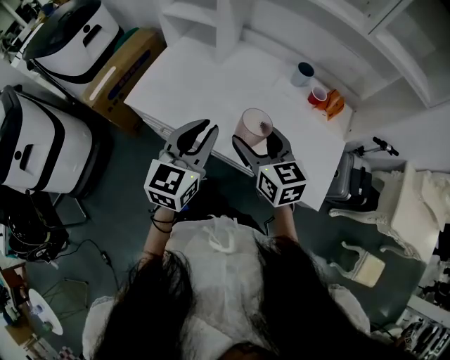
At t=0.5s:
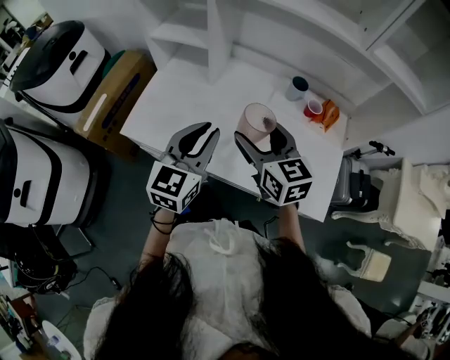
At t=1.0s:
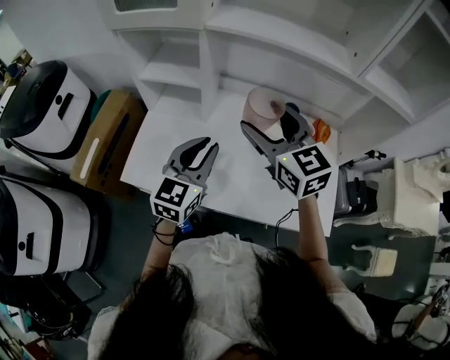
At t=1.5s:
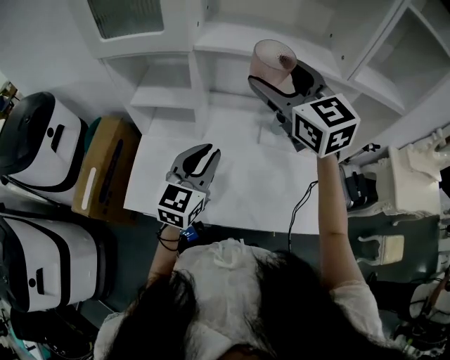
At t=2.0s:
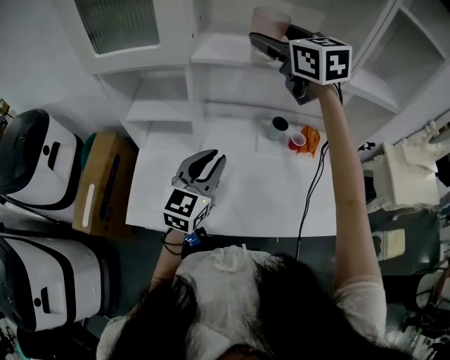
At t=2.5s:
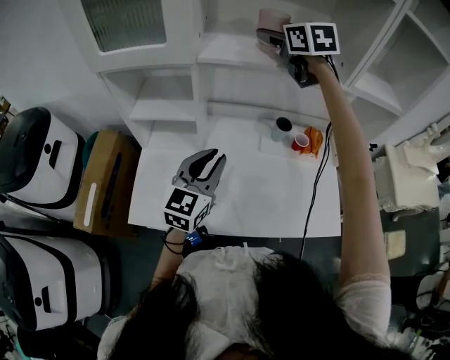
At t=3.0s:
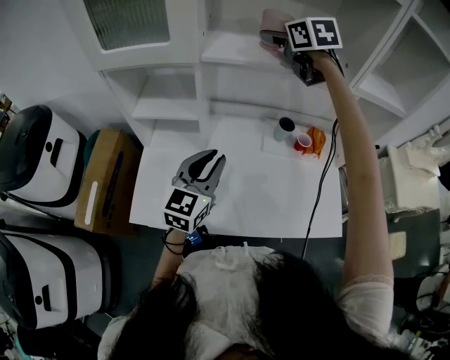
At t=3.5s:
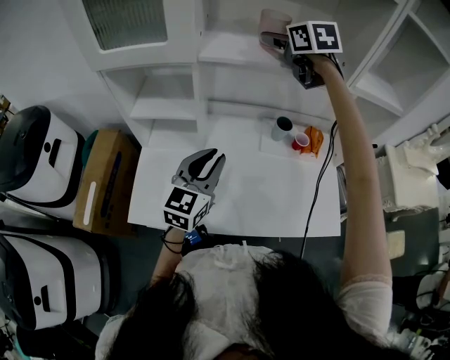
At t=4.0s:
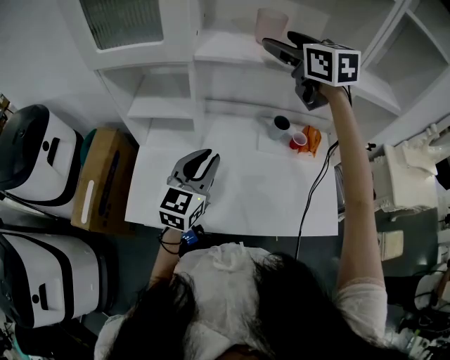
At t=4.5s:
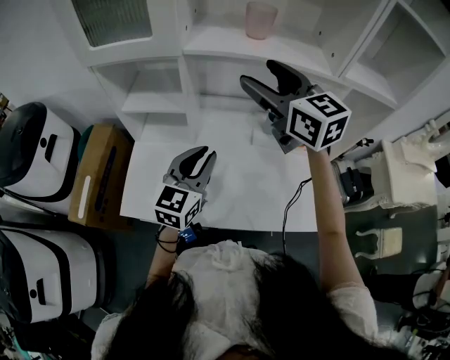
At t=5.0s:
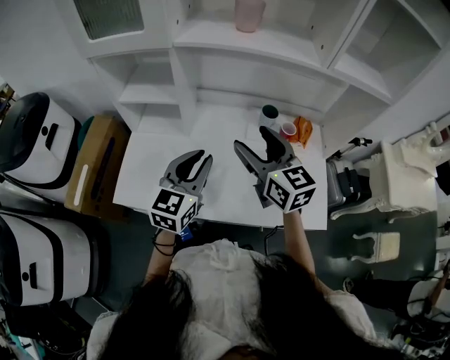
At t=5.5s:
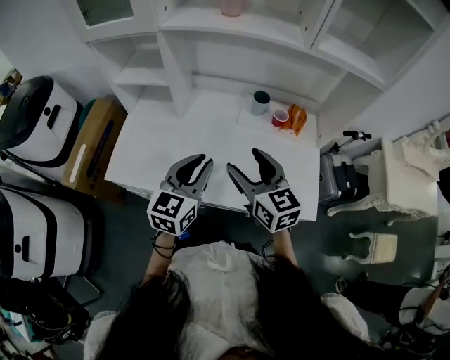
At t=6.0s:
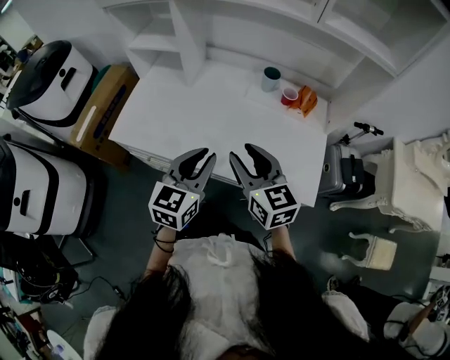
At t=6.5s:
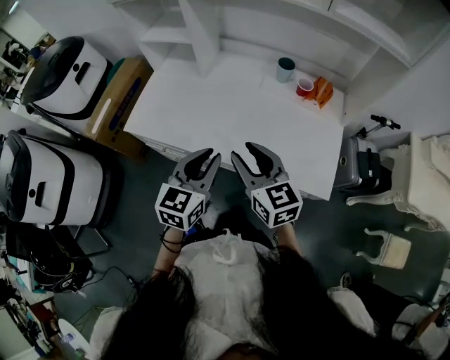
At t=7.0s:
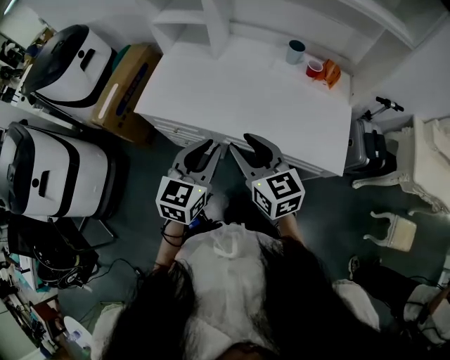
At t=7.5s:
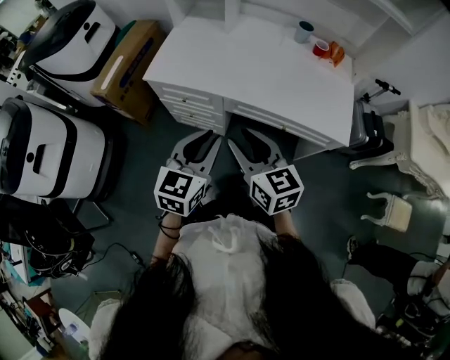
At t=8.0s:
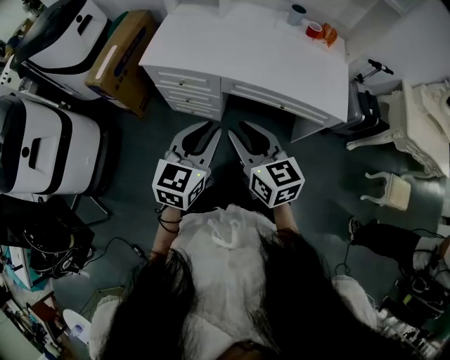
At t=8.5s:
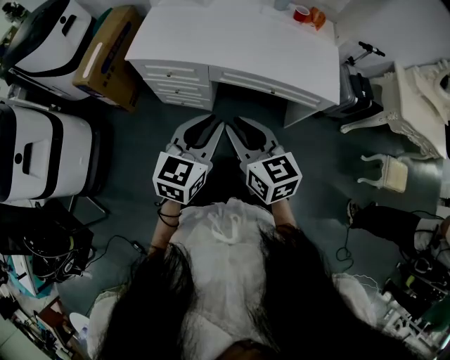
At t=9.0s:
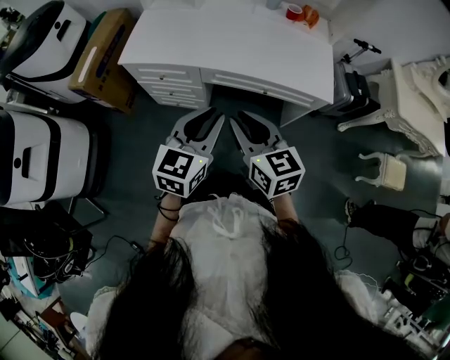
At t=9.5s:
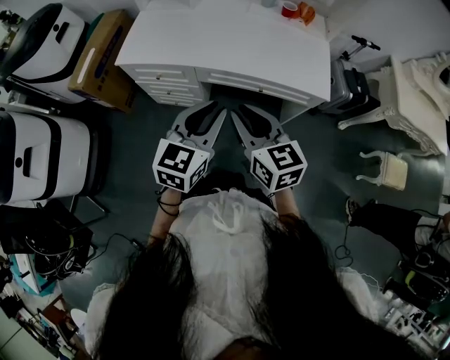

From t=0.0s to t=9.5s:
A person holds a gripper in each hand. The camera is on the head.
From t=0.0s to t=2.0s: The right gripper moves forward and upward, approximately 50 cm, and rotates about 30 degrees, while the left gripper heads forward, covering roughly 20 cm, and turns by some 30 degrees.
From t=2.0s to t=4.0s: The right gripper moves roughly 10 cm forward and comes back.
From t=4.0s to t=5.5s: The left gripper is displaced backward and to the right by about 15 cm, while the right gripper travels backward and downward by roughly 40 cm.
From t=5.5s to t=7.5s: The two grippers go some 30 cm backward and to the left. The right gripper closes up.
From t=7.5s to t=9.5s: Both grippers move to the right, approximately 10 cm.

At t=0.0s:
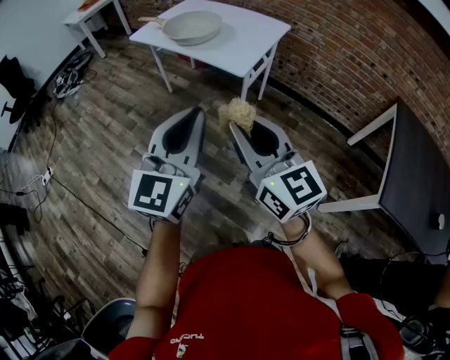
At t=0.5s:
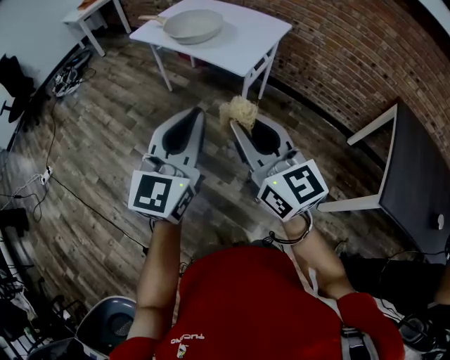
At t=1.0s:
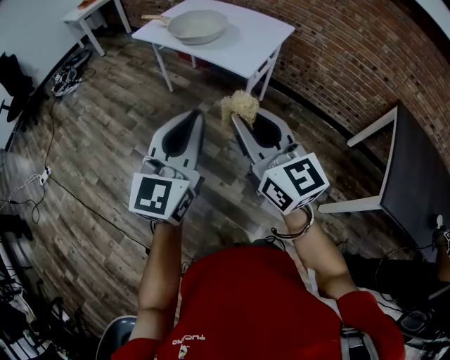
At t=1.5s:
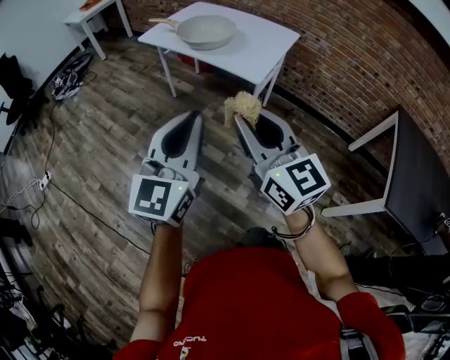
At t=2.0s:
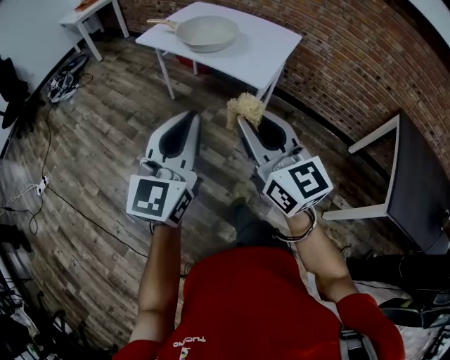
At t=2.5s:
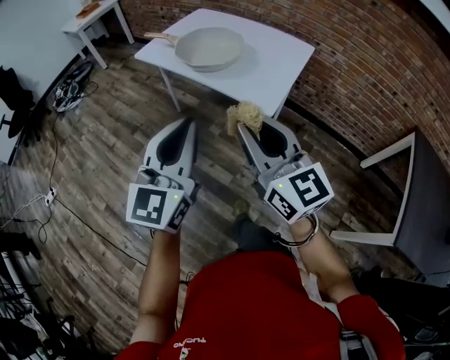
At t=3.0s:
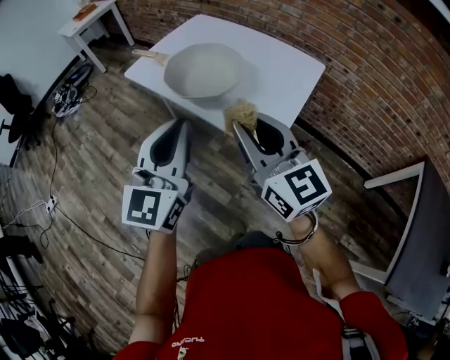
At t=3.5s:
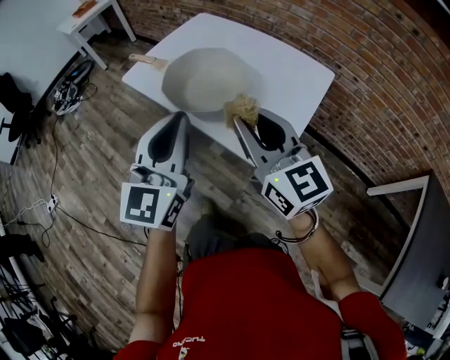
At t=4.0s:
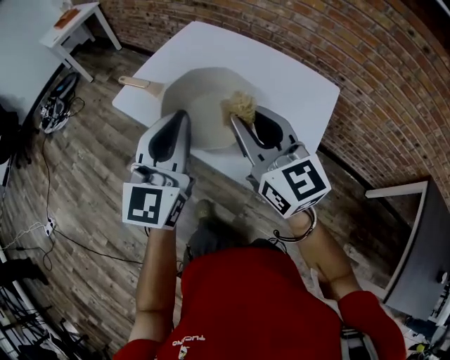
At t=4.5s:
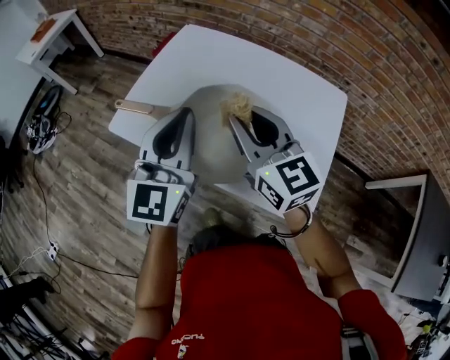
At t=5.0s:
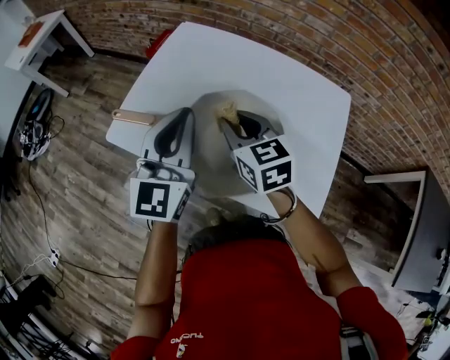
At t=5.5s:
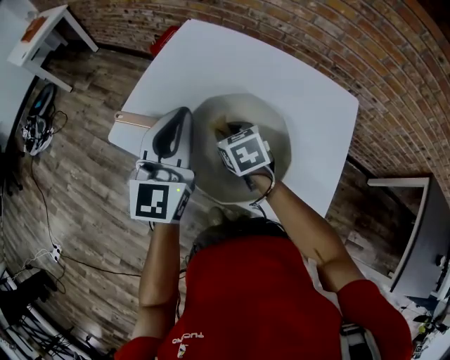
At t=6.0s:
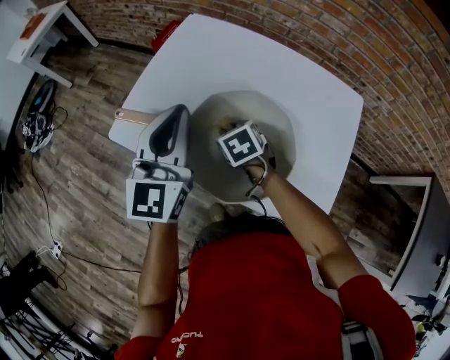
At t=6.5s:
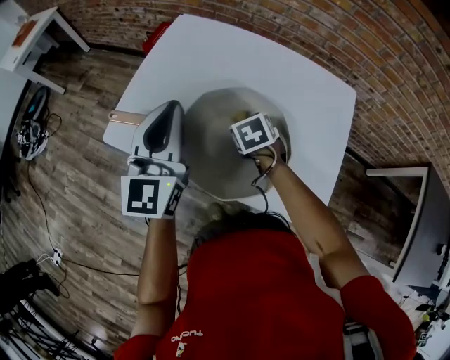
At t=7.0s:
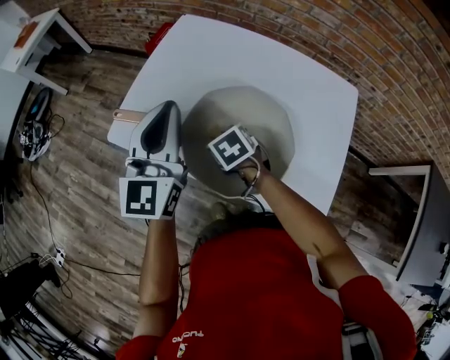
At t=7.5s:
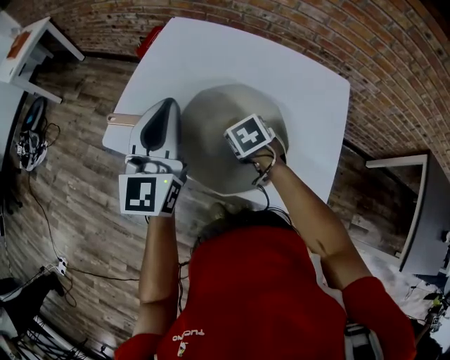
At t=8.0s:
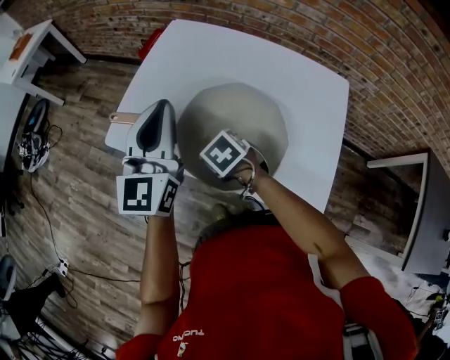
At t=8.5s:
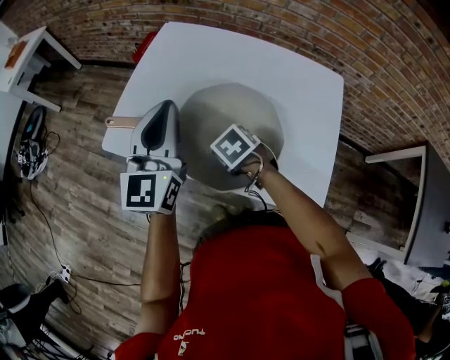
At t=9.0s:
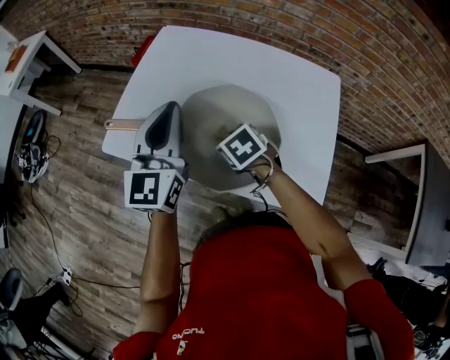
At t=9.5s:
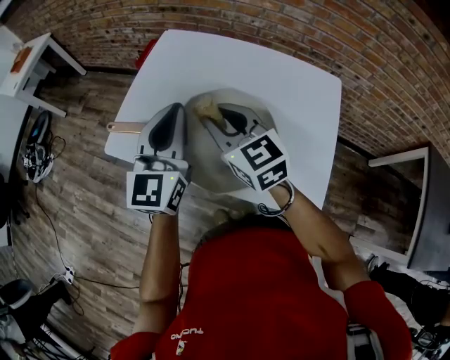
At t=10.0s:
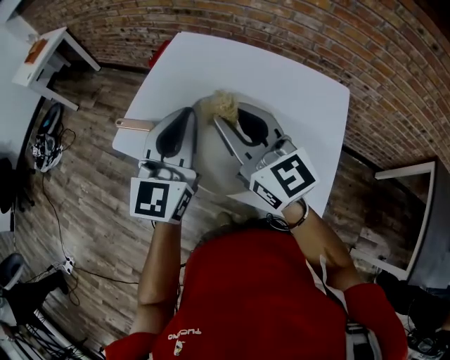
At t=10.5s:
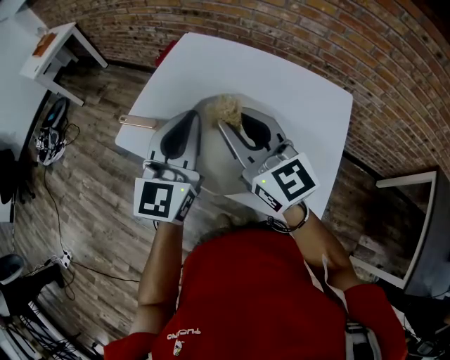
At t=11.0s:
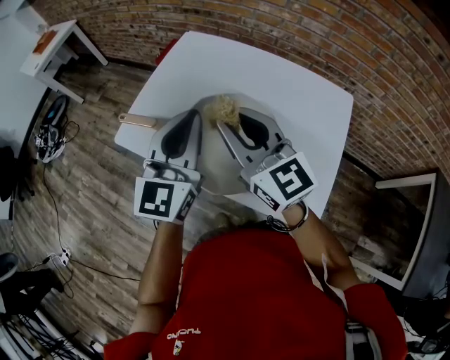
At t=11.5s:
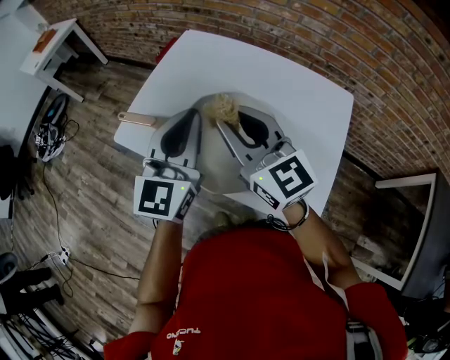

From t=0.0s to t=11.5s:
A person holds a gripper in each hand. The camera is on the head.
From t=0.0s to t=2.0s: Both grippers move to the left and forward, roughly 15 cm.
From t=2.0s to t=4.0s: The pair of grippers is taken forward, about 50 cm.
From t=4.0s to t=6.0s: The right gripper moves downward and forward, roughly 35 cm, and angles its fingers downward, by some 60 degrees. The left gripper travels forward by some 20 cm.
From t=6.0s to t=7.5s: The right gripper goes left and right, approximately 10 cm each way, reversing 2 times.
From t=7.5s to t=9.5s: The right gripper moves upward, approximately 20 cm, and angles its fingers upward, by roughly 50 degrees.
From t=9.5s to t=11.5s: The right gripper goes some 5 cm upward.

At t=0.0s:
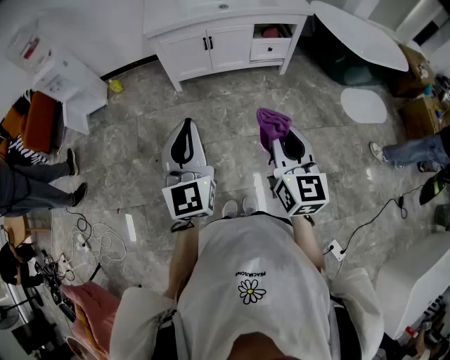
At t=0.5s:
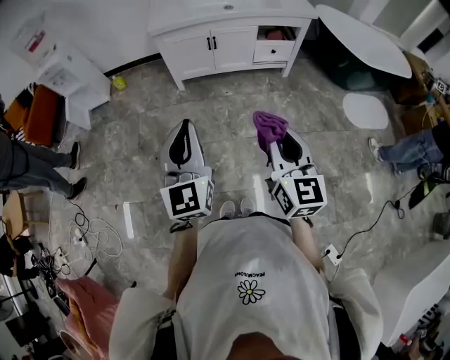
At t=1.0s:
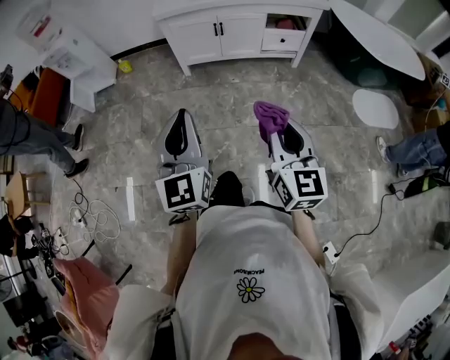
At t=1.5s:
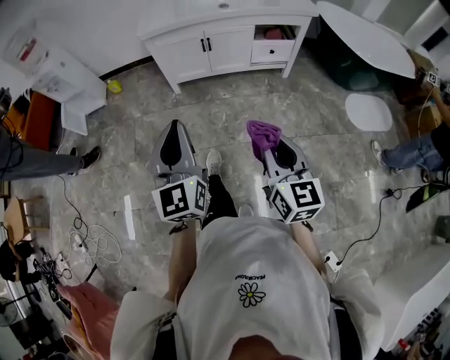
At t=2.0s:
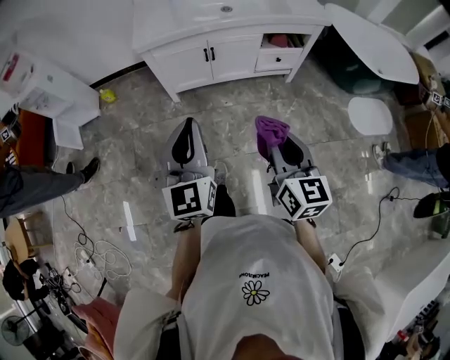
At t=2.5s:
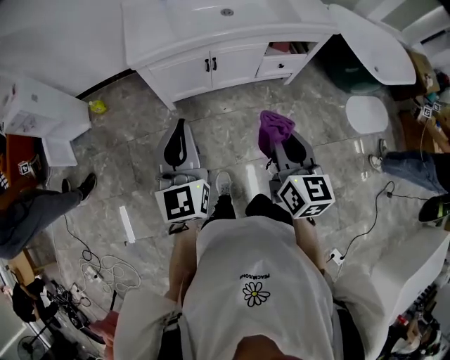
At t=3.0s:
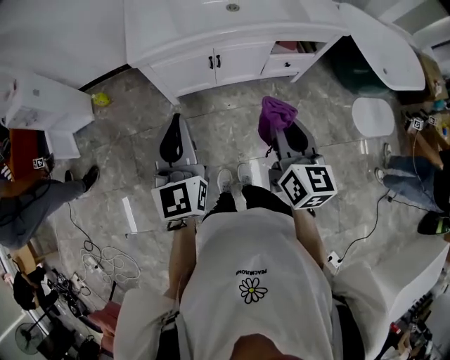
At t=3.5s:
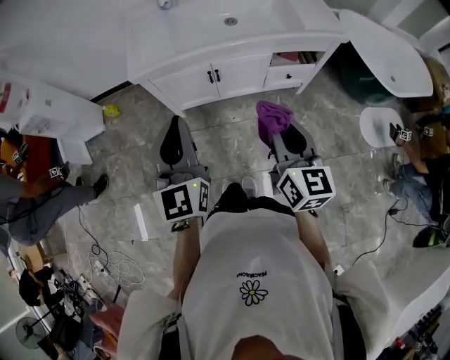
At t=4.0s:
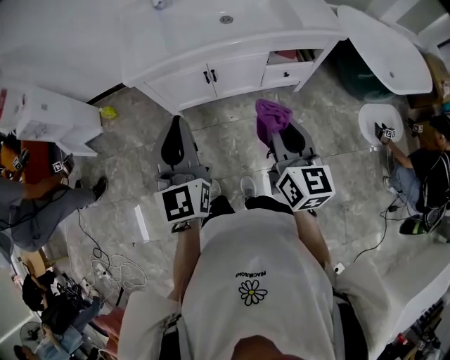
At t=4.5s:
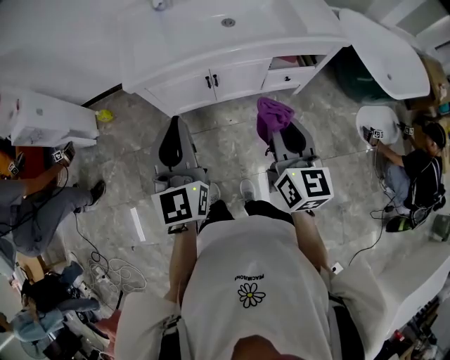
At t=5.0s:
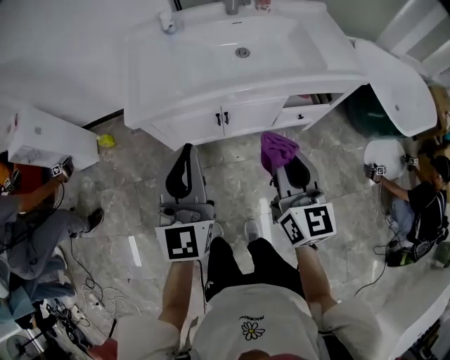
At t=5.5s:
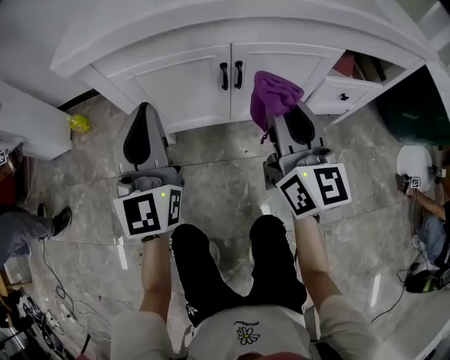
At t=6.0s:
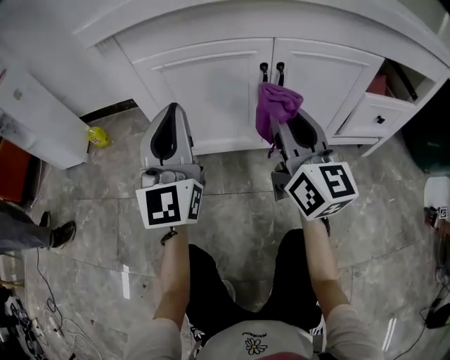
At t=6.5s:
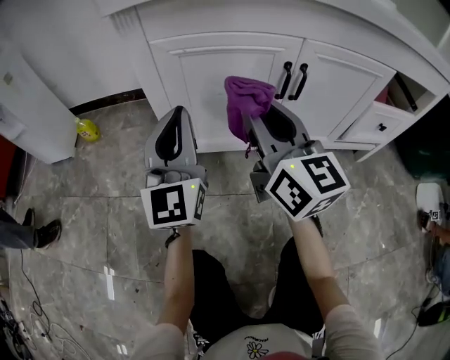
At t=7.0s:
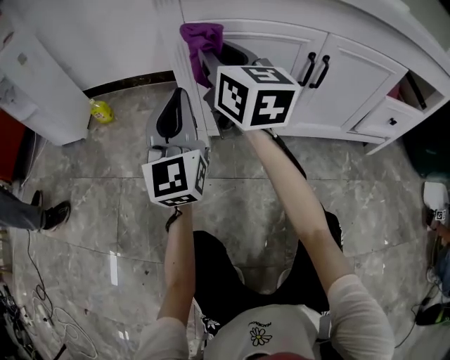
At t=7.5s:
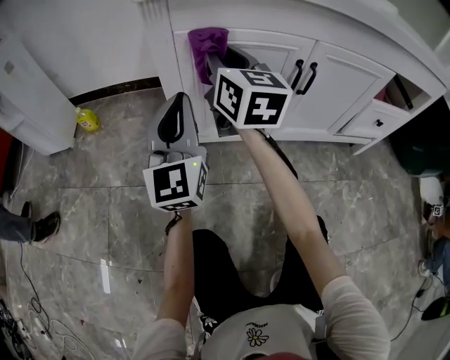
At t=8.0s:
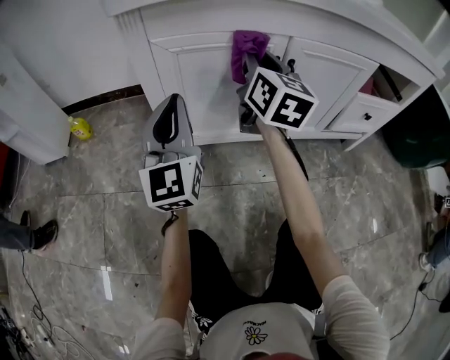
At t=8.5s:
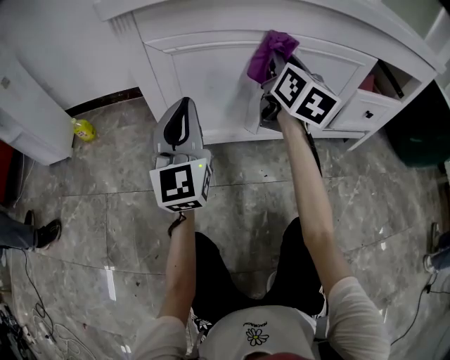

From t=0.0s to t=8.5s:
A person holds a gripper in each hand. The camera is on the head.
From t=0.0s to t=2.0s: Both grippers travel together forward, approximately 20 cm.
From t=2.0s to t=4.0s: The two grippers go approximately 20 cm forward.
From t=4.0s to t=6.5s: The left gripper travels downward and forward by about 50 cm; the right gripper travels downward, forward and to the left by approximately 50 cm, and rotates about 30 degrees.
From t=6.5s to t=8.5s: The right gripper heads to the right and forward, covering approximately 15 cm, and turns by roughly 30 degrees; the left gripper goes to the left and returns, roughly 5 cm each way.
